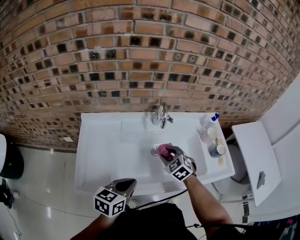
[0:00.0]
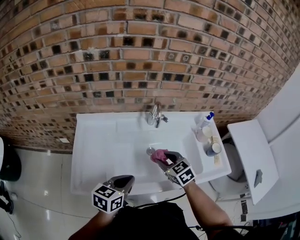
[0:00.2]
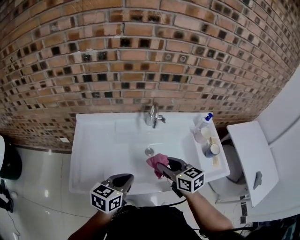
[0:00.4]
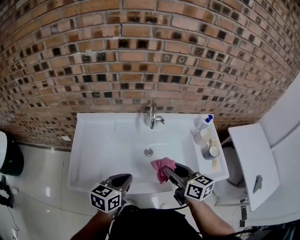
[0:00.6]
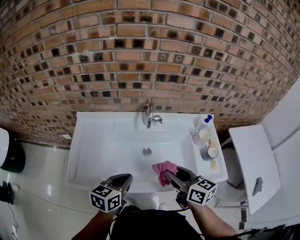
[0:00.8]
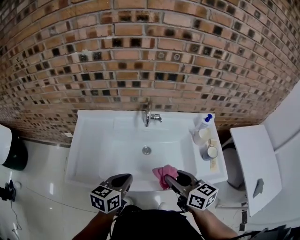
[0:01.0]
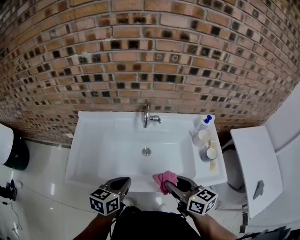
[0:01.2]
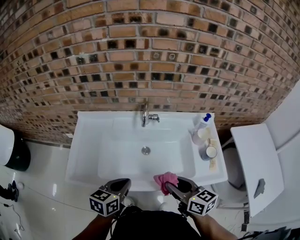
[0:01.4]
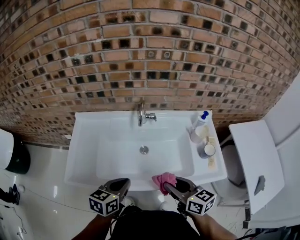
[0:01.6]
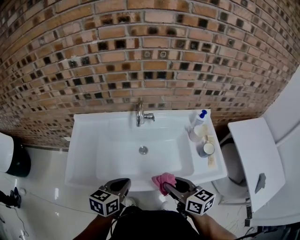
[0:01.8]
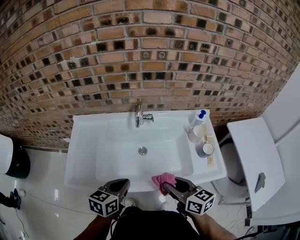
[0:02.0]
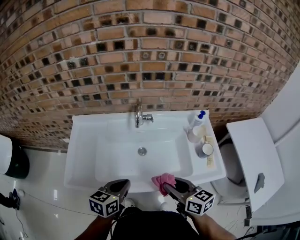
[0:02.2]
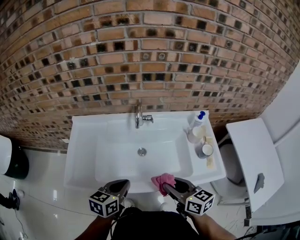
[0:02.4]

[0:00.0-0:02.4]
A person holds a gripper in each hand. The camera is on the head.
0:00.0 to 0:01.2: The left gripper shifts approximately 10 cm to the right. The right gripper heads backward, to the right and upward, covering some 20 cm, and twists about 50 degrees clockwise, seen from behind.
0:01.2 to 0:02.4: The grippers move only a little.

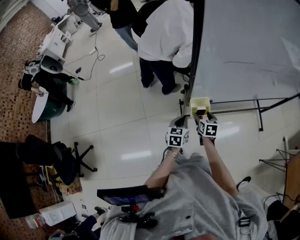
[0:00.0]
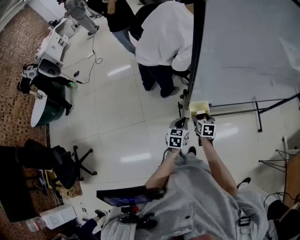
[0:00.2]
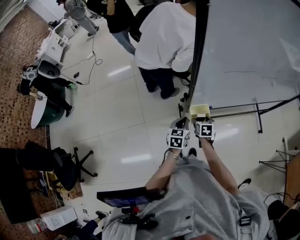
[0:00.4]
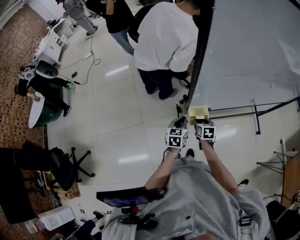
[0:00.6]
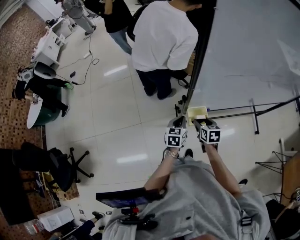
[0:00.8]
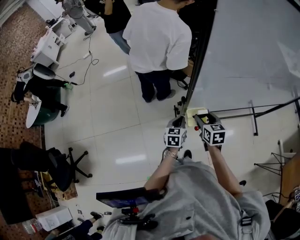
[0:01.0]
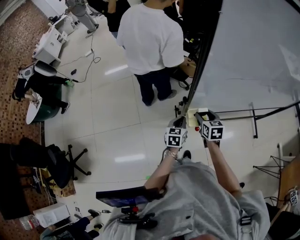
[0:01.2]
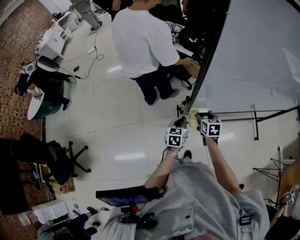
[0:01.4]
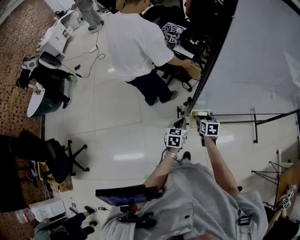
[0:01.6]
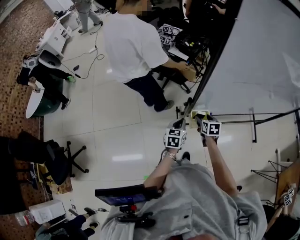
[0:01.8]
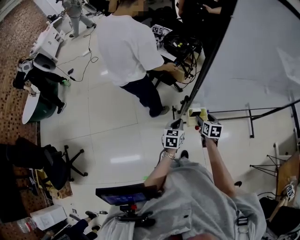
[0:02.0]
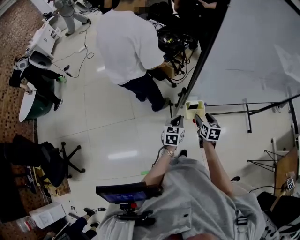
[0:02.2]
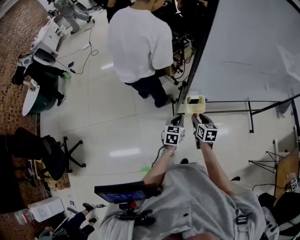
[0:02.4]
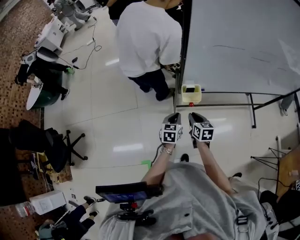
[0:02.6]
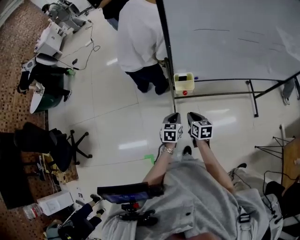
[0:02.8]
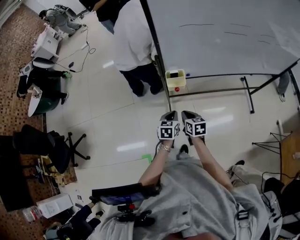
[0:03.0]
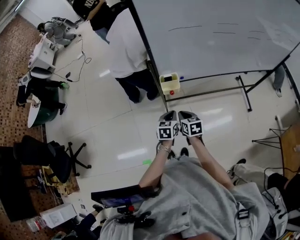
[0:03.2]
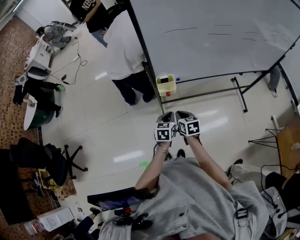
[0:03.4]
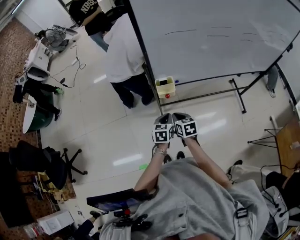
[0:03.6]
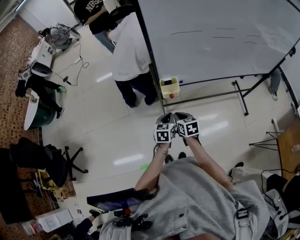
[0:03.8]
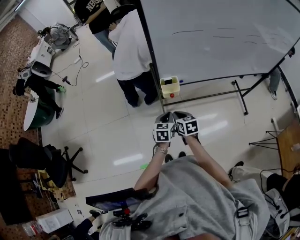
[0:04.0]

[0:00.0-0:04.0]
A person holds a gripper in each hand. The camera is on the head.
0:00.0 to 0:01.4: Both grippers travel together forward, about 5 cm. The right gripper travels upward and back again, some 10 cm each way.
0:01.4 to 0:02.6: Both grippers travel together backward, about 15 cm. The right gripper closes up.
0:02.6 to 0:04.0: The grippers both shift backward by about 10 cm.

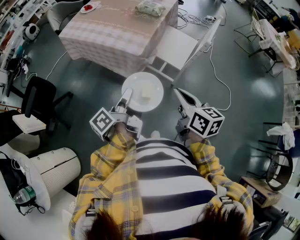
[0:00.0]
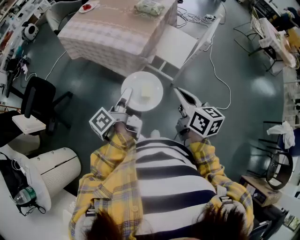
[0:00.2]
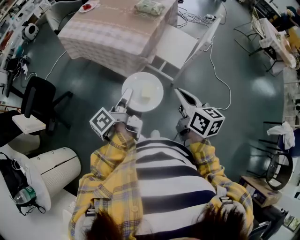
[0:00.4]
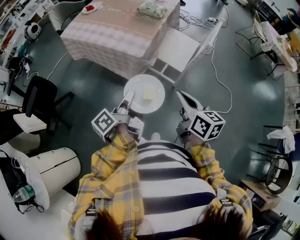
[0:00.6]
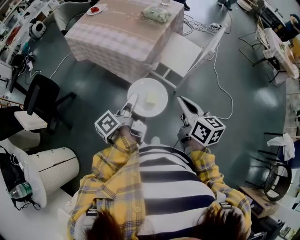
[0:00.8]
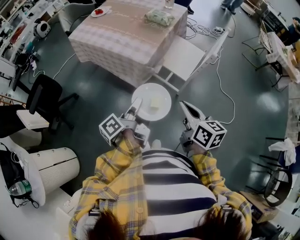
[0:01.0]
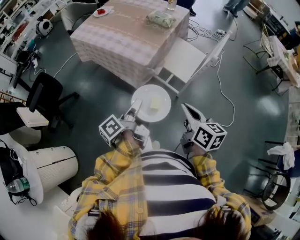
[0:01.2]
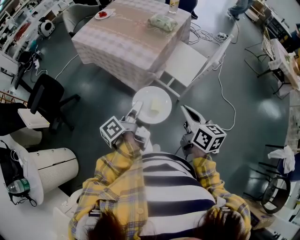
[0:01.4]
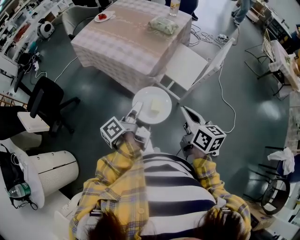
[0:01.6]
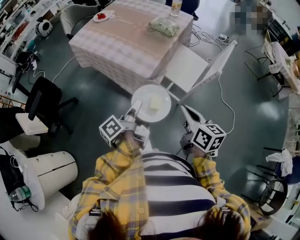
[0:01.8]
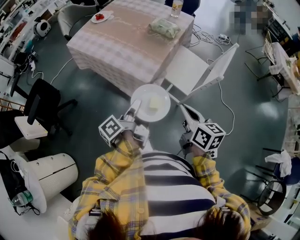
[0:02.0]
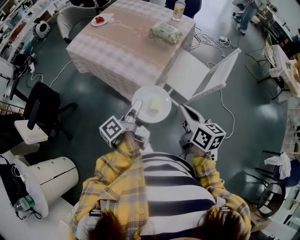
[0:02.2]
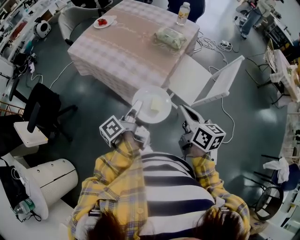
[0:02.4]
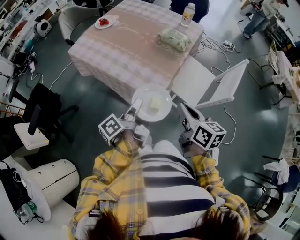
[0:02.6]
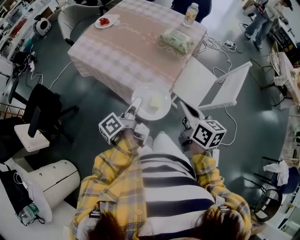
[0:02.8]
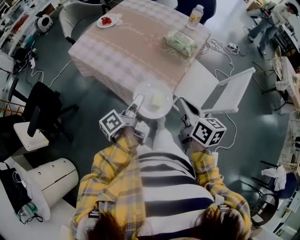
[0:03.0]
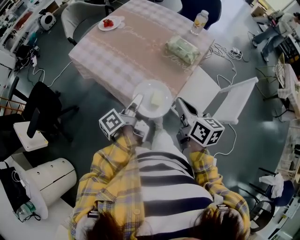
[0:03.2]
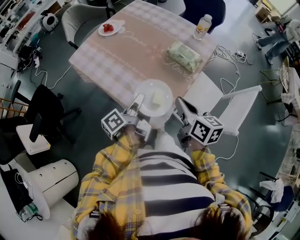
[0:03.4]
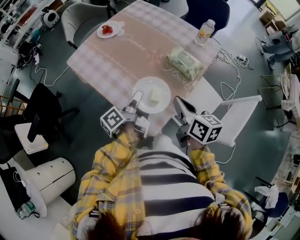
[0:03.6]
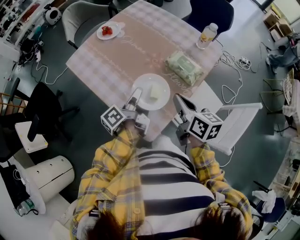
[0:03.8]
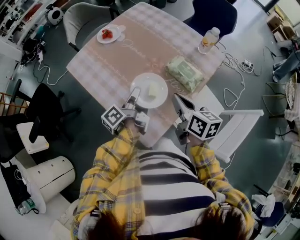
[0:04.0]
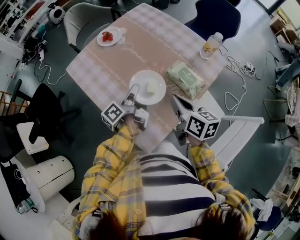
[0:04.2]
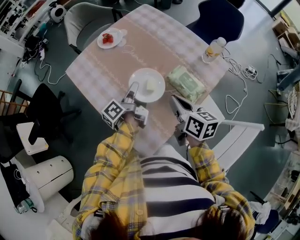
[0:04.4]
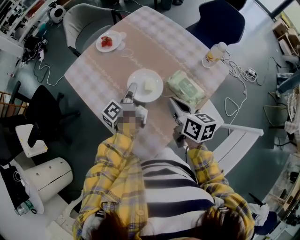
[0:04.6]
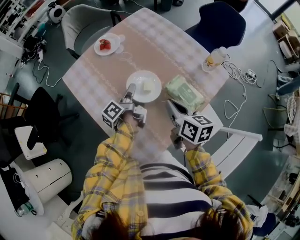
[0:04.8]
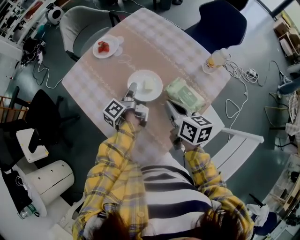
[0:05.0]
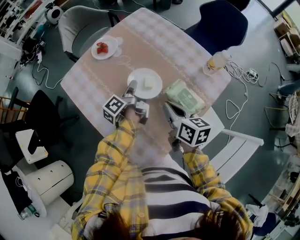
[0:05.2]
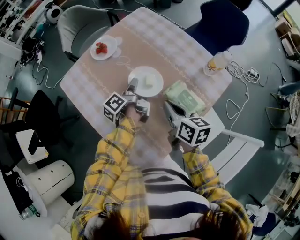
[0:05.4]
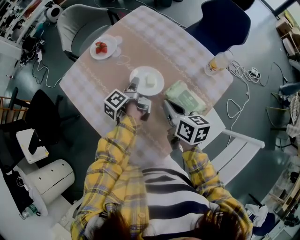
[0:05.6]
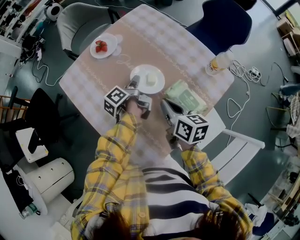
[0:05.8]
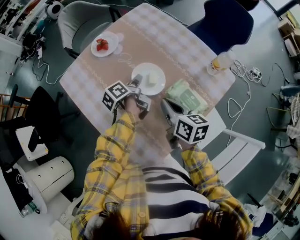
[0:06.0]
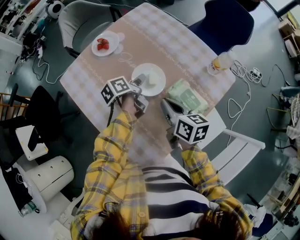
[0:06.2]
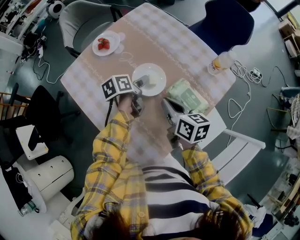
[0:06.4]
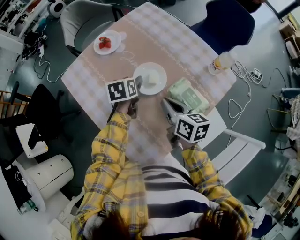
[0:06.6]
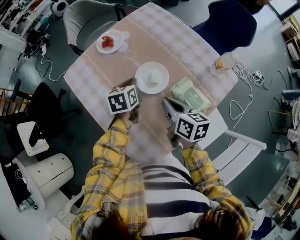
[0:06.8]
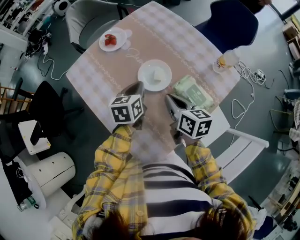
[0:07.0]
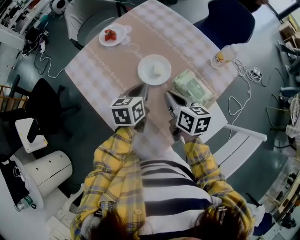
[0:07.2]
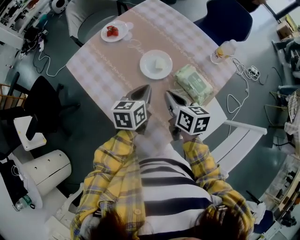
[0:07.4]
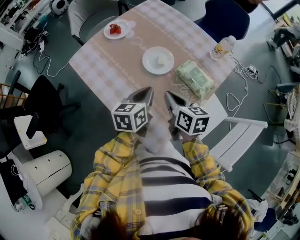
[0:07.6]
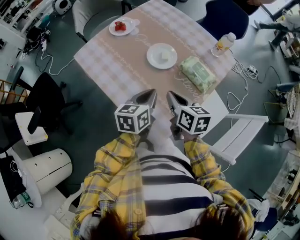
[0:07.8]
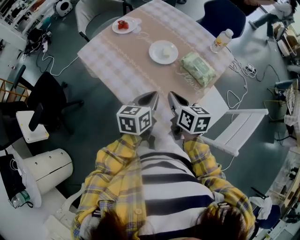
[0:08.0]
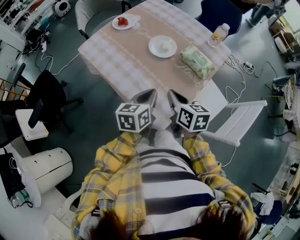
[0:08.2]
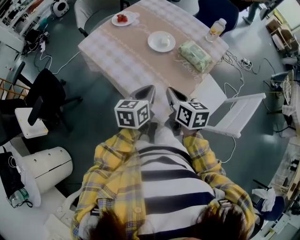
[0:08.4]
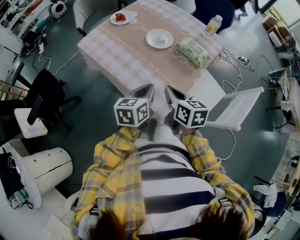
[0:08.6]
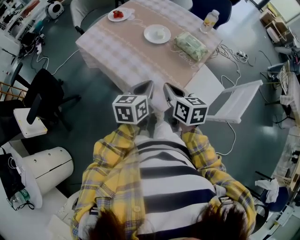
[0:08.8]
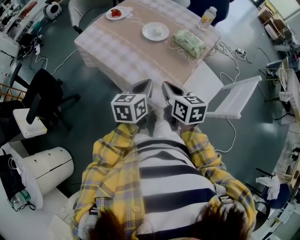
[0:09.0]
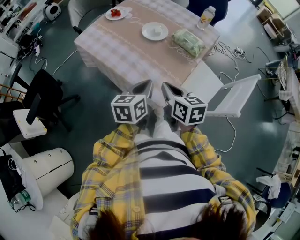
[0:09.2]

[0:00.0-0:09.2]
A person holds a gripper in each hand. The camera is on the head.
0:01.6 to 0:03.0: The right gripper shifts by roughly 25 cm.
0:03.0 to 0:04.6: The right gripper changes place by some 30 cm.
0:04.6 to 0:06.2: The right gripper moves approximately 5 cm.
0:06.2 to 0:07.6: The right gripper moves some 10 cm.
0:07.6 to 0:09.2: The right gripper ends up about 20 cm from where it was.

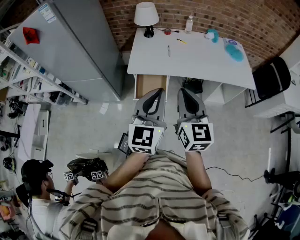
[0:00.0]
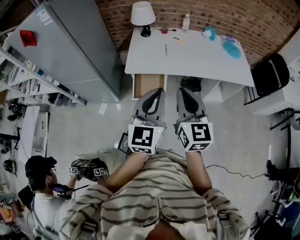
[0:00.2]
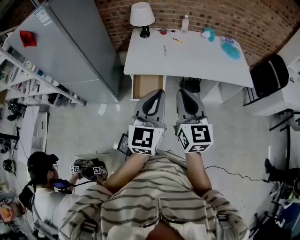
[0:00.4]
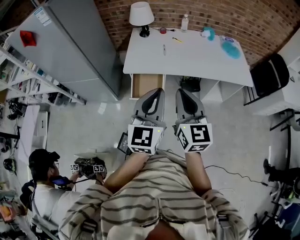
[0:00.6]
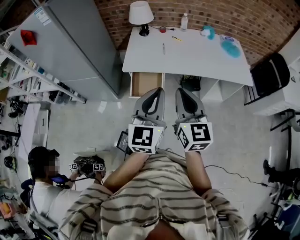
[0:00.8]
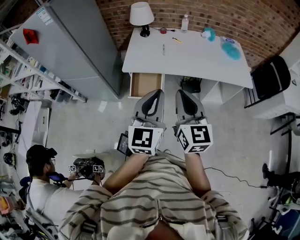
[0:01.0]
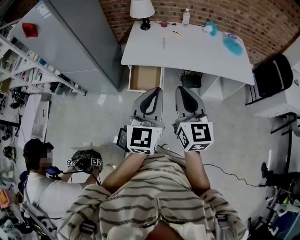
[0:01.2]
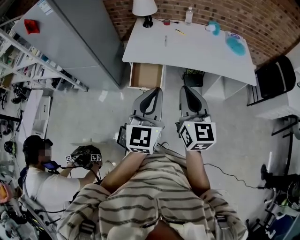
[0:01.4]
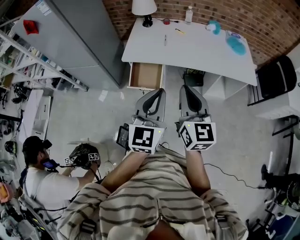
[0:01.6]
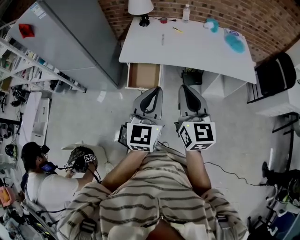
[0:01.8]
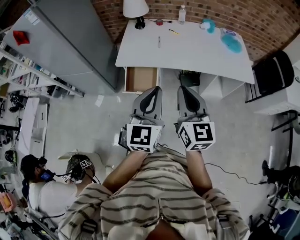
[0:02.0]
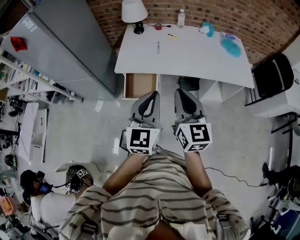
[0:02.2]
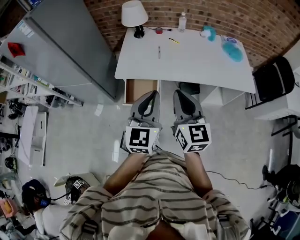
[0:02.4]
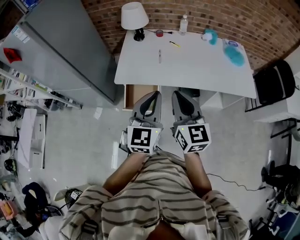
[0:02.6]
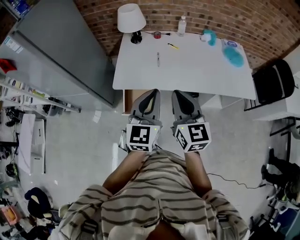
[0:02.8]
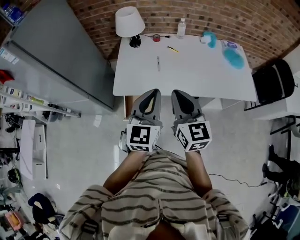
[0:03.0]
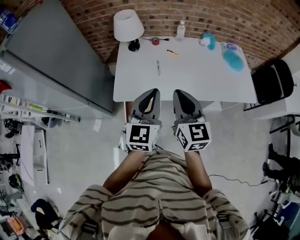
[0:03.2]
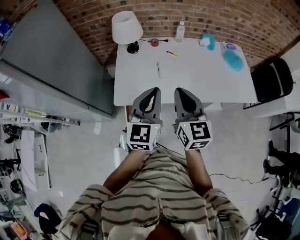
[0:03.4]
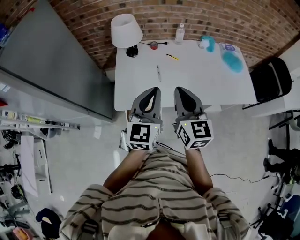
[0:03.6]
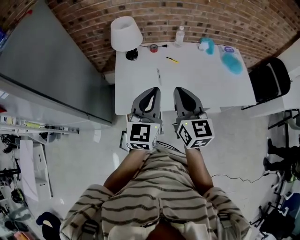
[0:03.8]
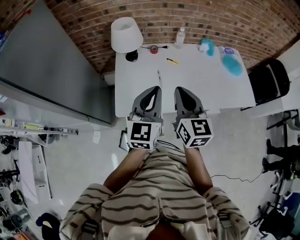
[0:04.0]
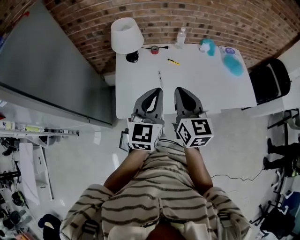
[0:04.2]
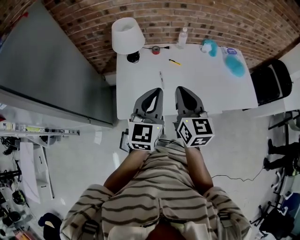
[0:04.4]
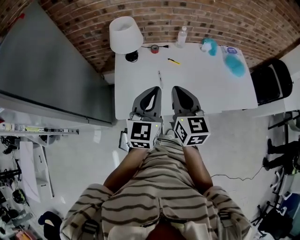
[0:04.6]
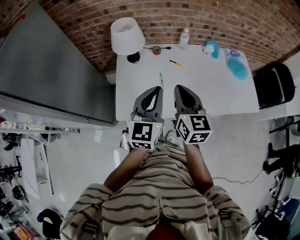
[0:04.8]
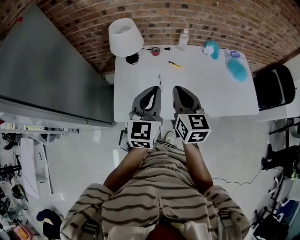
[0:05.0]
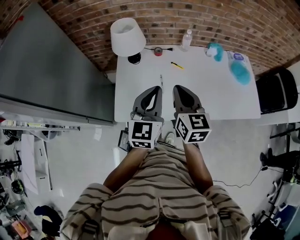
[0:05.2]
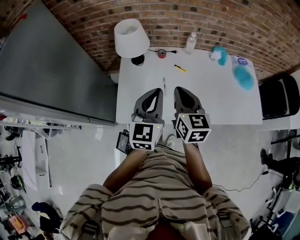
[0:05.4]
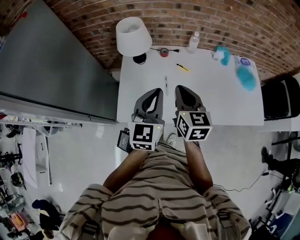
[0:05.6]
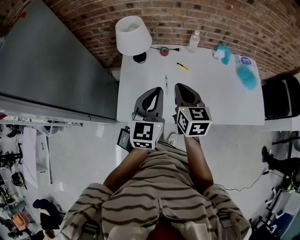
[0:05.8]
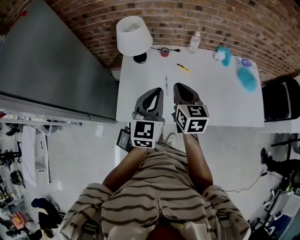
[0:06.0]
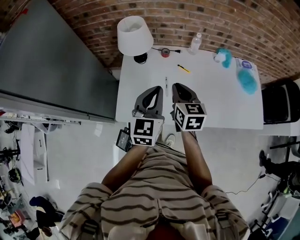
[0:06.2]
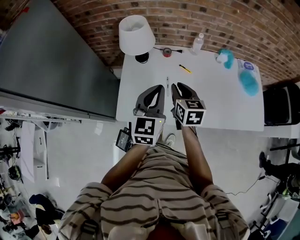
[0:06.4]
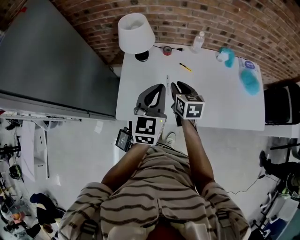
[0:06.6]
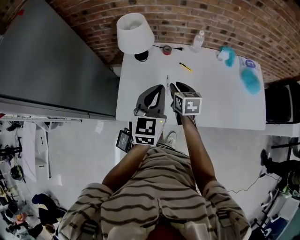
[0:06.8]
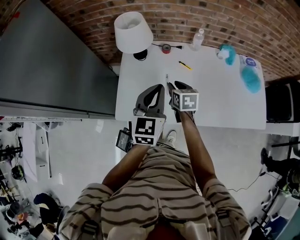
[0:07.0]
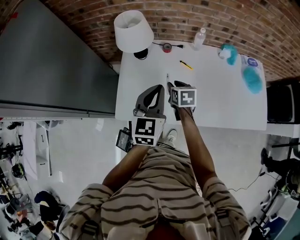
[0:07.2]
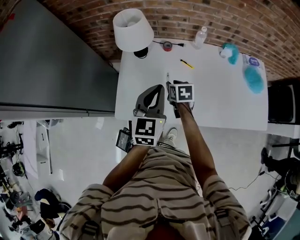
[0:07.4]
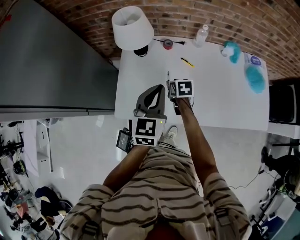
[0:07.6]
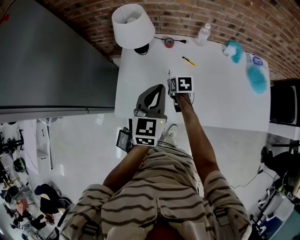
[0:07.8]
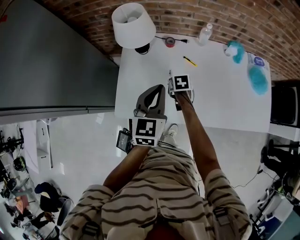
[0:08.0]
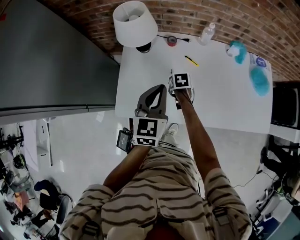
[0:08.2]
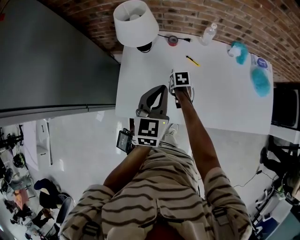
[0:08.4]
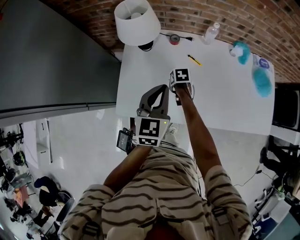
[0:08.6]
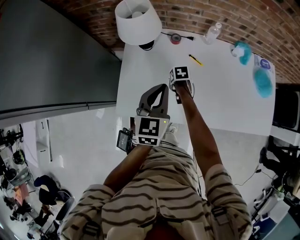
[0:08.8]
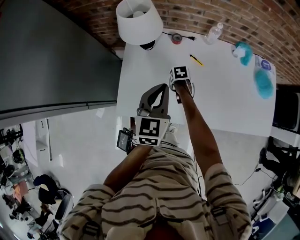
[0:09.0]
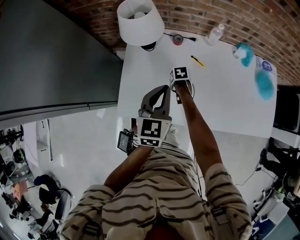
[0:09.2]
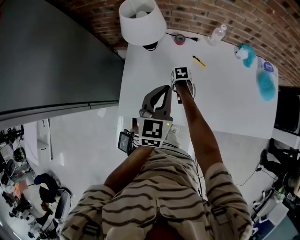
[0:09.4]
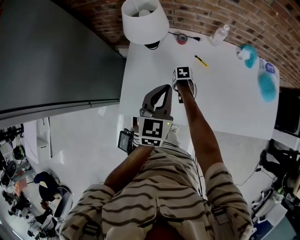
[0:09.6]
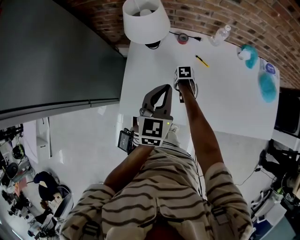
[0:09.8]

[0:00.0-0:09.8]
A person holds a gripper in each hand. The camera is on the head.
0:00.0 to 0:01.4: Both grippers move to the right, roughly 10 cm.
0:01.4 to 0:02.8: The two grippers go about 20 cm forward.
0:02.8 to 0:04.2: Both grippers travel together forward and to the left, some 20 cm.
0:04.2 to 0:05.6: The two grippers go approximately 10 cm forward.
0:05.6 to 0:07.0: The right gripper travels downward and forward by roughly 20 cm, swivels about 20 degrees, and opens up. Meanwhile the left gripper moves approximately 5 cm.
0:07.0 to 0:08.4: The right gripper heads downward, covering about 15 cm, and changes its angle by approximately 30 degrees, while the left gripper shifts about 5 cm downward.
0:08.4 to 0:09.8: The right gripper shifts roughly 5 cm downward.
